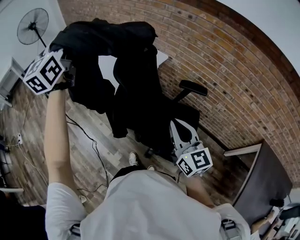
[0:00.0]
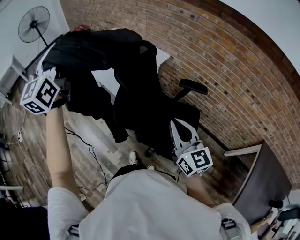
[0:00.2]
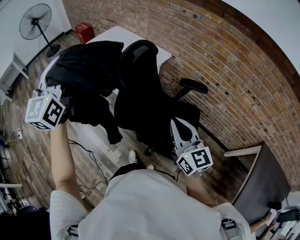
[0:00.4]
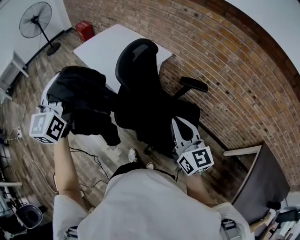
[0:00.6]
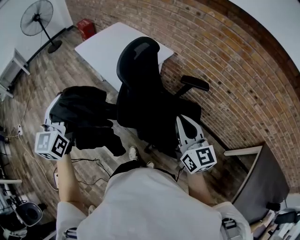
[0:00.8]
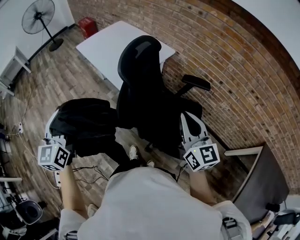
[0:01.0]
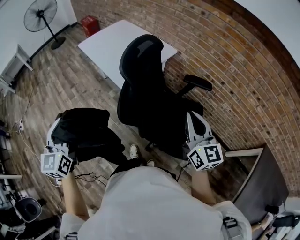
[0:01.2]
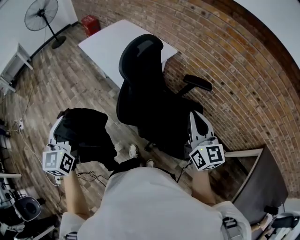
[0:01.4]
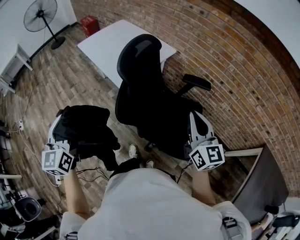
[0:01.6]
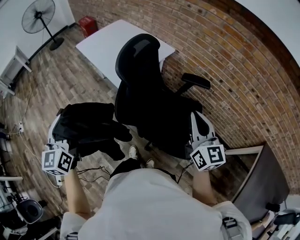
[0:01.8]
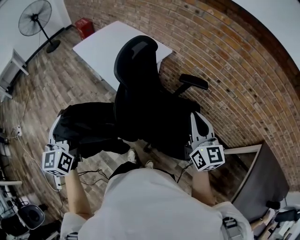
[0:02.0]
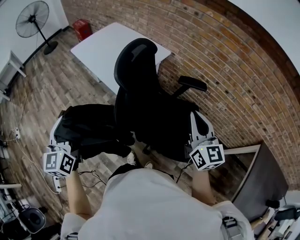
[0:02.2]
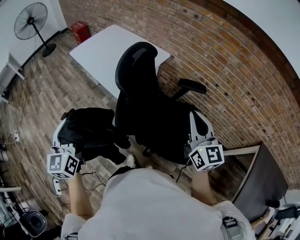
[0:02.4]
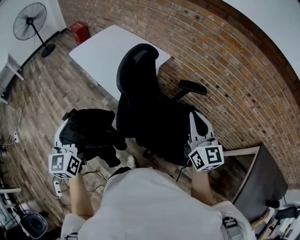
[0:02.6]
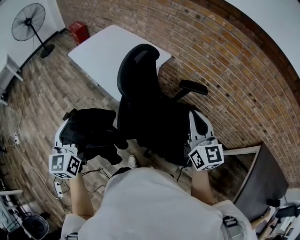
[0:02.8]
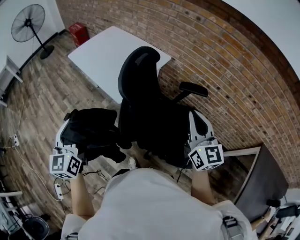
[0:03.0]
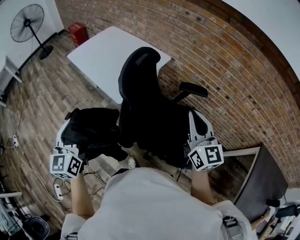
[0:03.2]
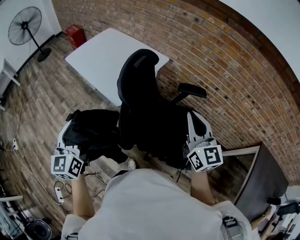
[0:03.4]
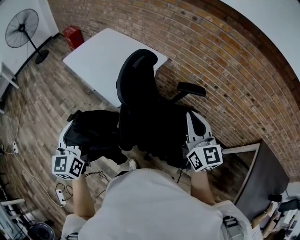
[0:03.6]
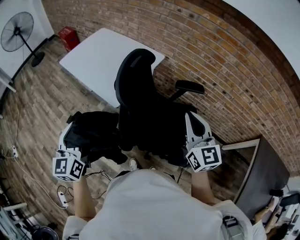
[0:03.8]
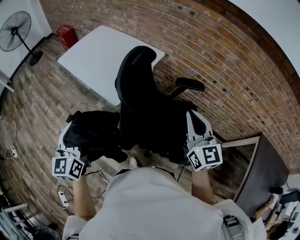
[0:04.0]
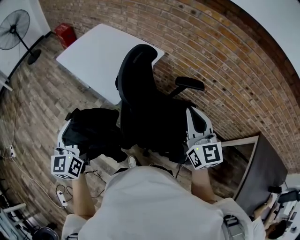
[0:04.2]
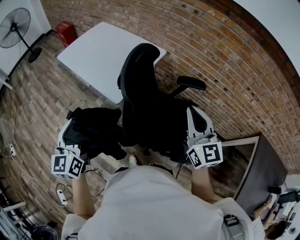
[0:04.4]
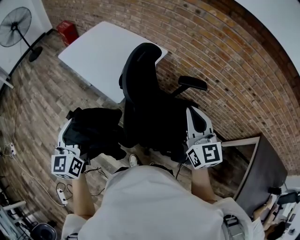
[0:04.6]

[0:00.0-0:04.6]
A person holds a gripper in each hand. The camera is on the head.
0:00.0 to 0:01.6: The left gripper shifts about 30 cm backward and downward, and changes its angle by about 20 degrees, while the right gripper moves to the right, about 5 cm.
0:01.6 to 0:03.0: The two grippers go some 10 cm forward.
0:03.0 to 0:04.6: The left gripper moves roughly 5 cm.

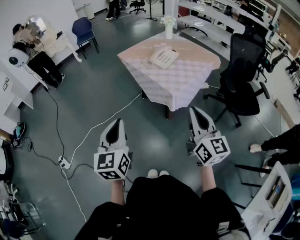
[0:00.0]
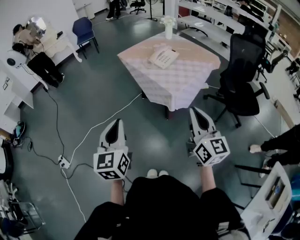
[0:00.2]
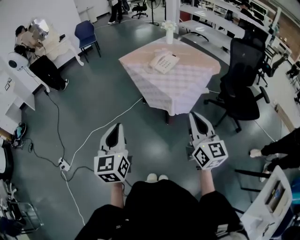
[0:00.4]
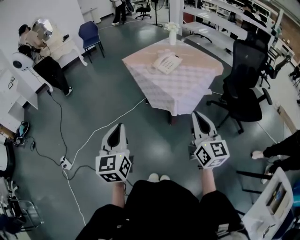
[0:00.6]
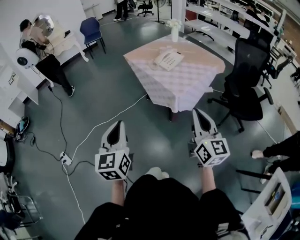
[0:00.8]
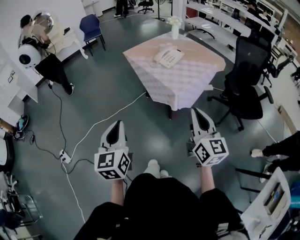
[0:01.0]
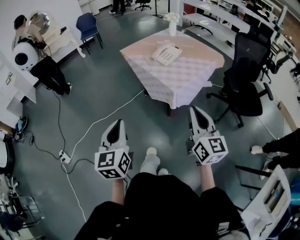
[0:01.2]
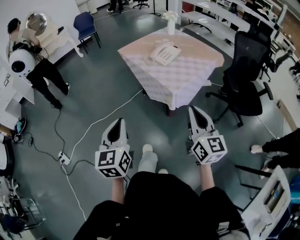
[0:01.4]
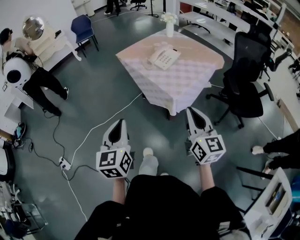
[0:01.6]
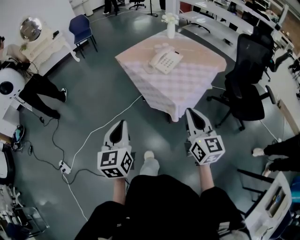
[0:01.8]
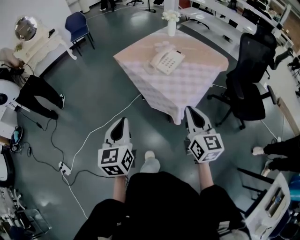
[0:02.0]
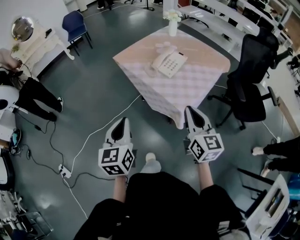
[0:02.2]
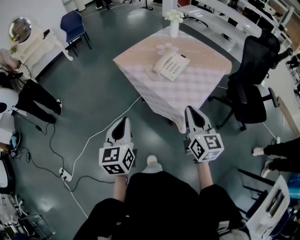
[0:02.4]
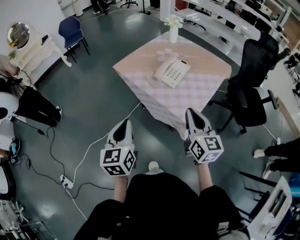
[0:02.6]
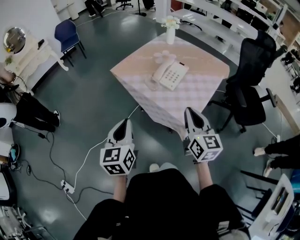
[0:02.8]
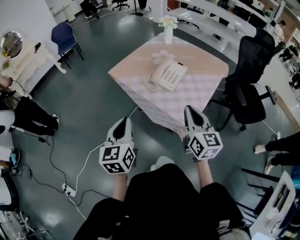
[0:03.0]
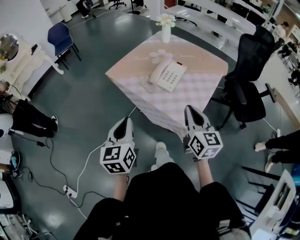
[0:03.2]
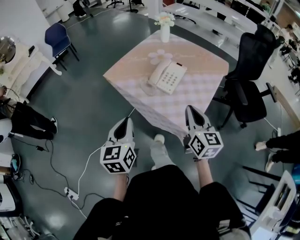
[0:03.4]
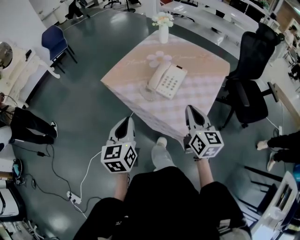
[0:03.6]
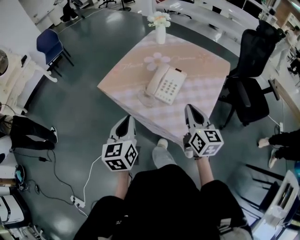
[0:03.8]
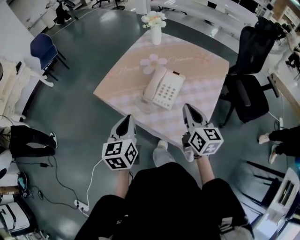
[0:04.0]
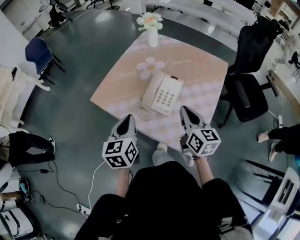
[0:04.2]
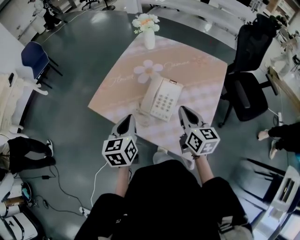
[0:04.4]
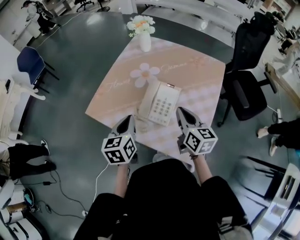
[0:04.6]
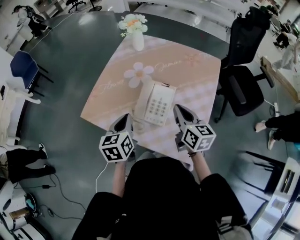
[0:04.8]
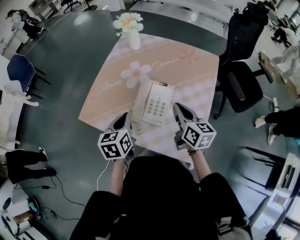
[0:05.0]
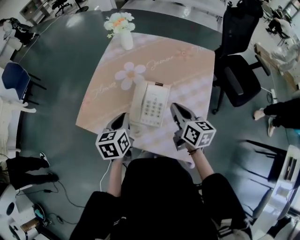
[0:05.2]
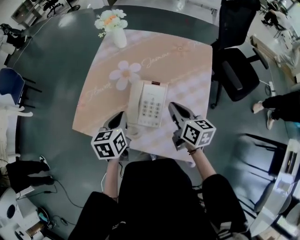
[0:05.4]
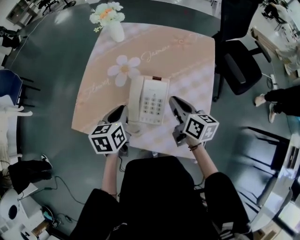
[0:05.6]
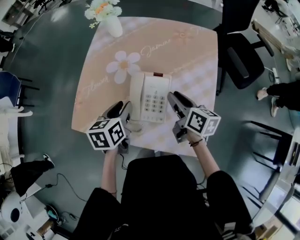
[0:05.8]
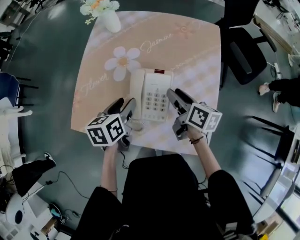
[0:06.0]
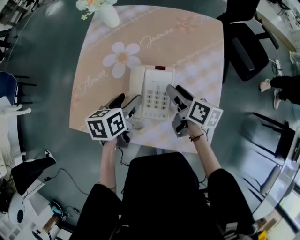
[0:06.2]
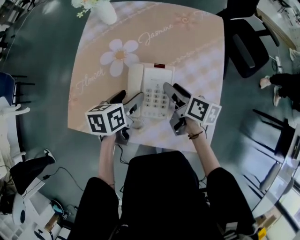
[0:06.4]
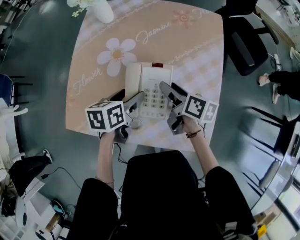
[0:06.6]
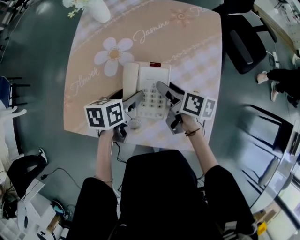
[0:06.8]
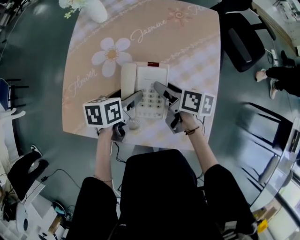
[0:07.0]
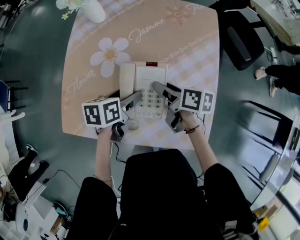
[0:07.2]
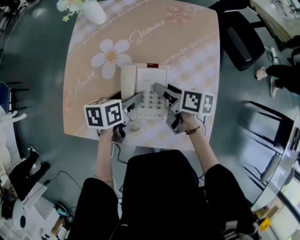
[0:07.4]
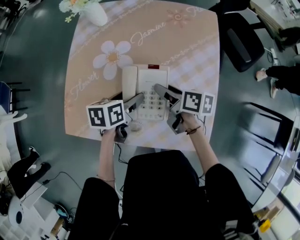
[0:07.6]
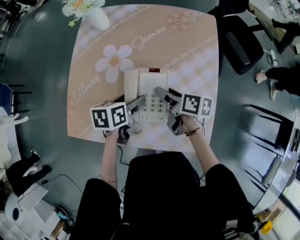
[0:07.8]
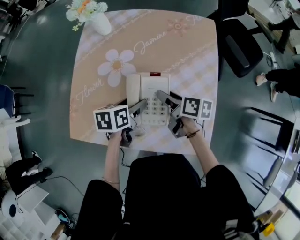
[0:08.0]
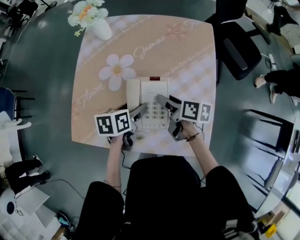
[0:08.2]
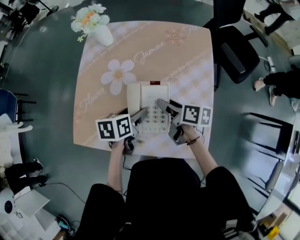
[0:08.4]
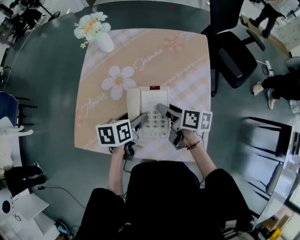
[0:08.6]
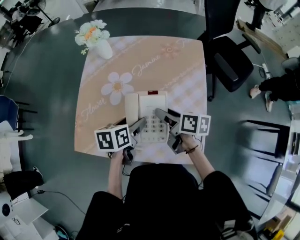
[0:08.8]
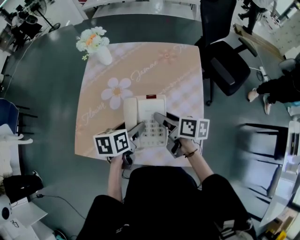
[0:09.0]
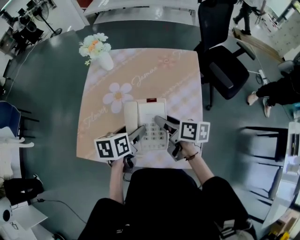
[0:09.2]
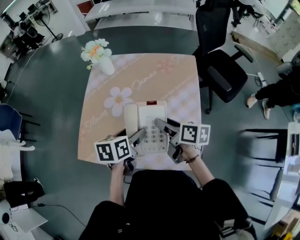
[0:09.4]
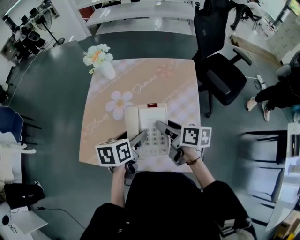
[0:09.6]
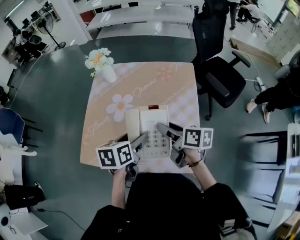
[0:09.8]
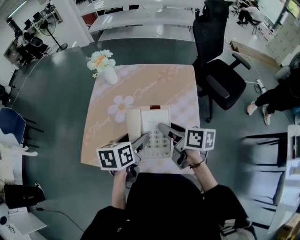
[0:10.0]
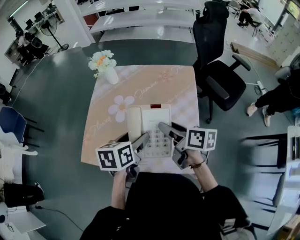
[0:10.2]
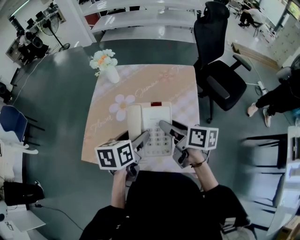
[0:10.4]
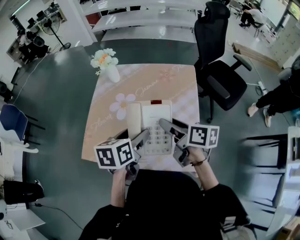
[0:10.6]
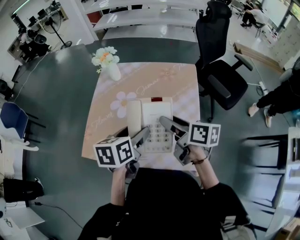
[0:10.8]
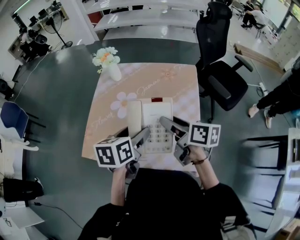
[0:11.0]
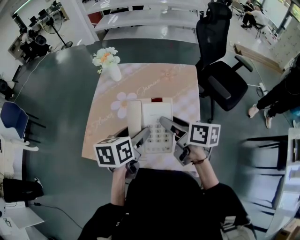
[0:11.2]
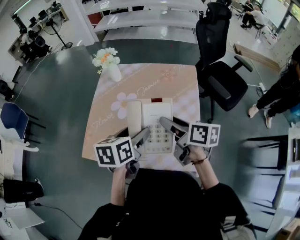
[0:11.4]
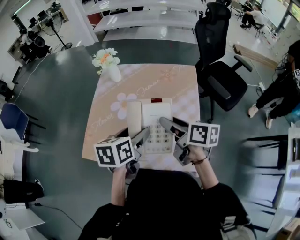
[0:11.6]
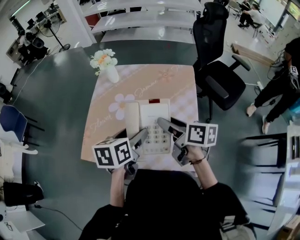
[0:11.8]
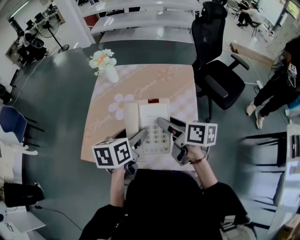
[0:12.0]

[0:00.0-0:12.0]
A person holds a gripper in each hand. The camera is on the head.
0:00.0 to 0:01.6: The two grippers go some 5 cm forward.
0:01.6 to 0:03.0: The two grippers go about 25 cm forward.
0:03.0 to 0:04.4: The grippers both shift forward by some 25 cm.
0:04.4 to 0:06.0: The left gripper goes some 20 cm forward and downward, changes its angle by about 30 degrees, and opens its fingers; the right gripper is displaced downward and forward by about 15 cm, swivels about 30 degrees, and opens its fingers.
0:06.0 to 0:07.6: The left gripper is displaced downward by some 5 cm, and opens up, while the right gripper moves roughly 5 cm.
0:07.6 to 0:09.0: Both grippers move upward, roughly 10 cm.
0:09.0 to 0:10.4: Both grippers travel together upward, about 10 cm.
0:10.4 to 0:12.0: The grippers make only small movements.

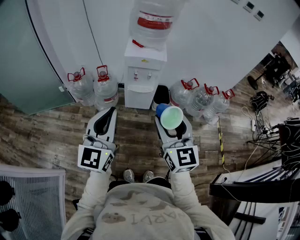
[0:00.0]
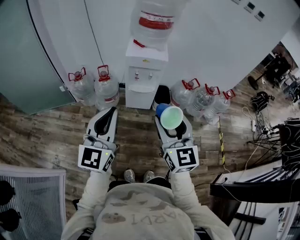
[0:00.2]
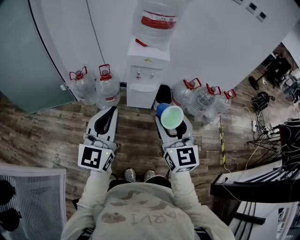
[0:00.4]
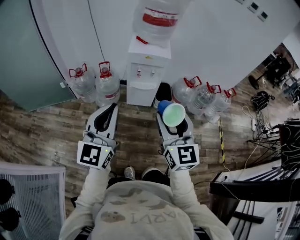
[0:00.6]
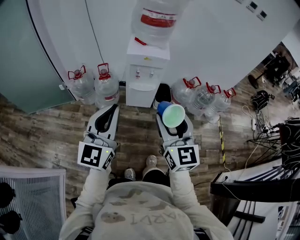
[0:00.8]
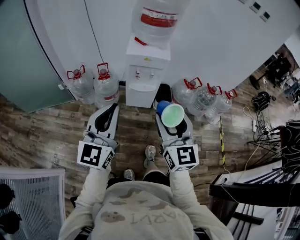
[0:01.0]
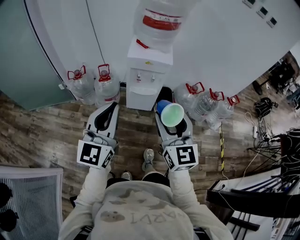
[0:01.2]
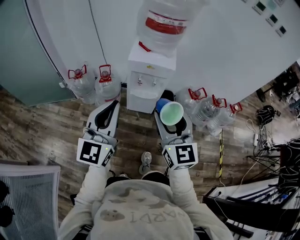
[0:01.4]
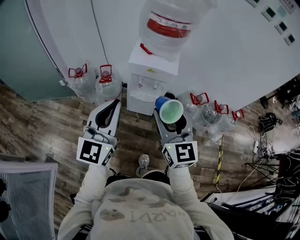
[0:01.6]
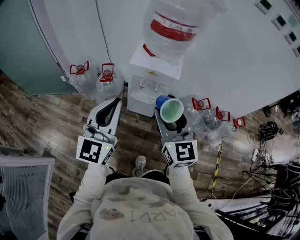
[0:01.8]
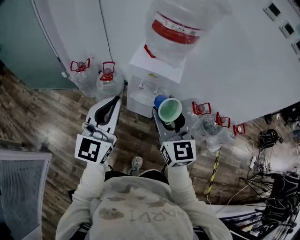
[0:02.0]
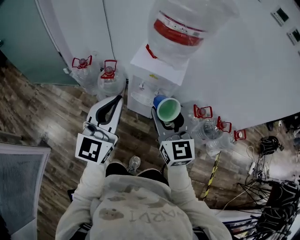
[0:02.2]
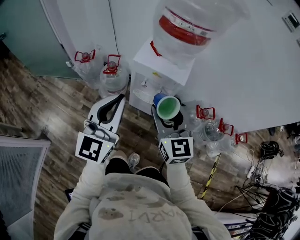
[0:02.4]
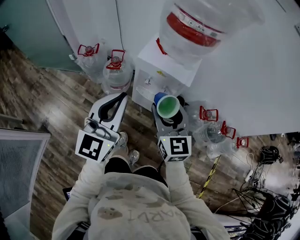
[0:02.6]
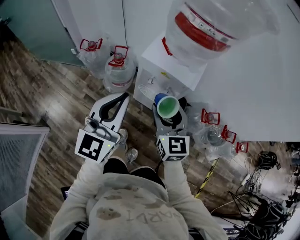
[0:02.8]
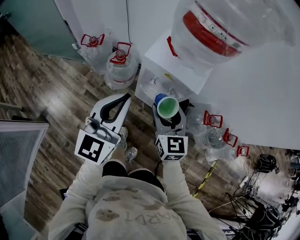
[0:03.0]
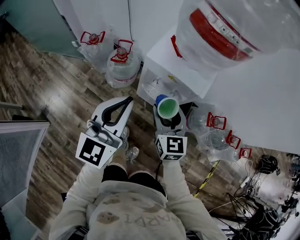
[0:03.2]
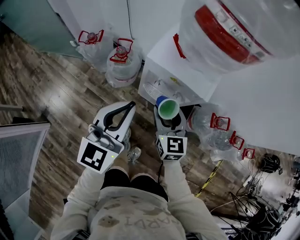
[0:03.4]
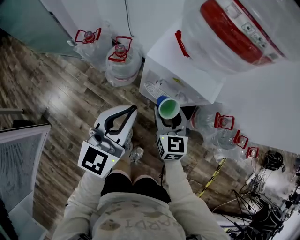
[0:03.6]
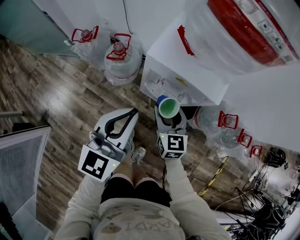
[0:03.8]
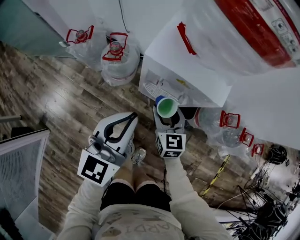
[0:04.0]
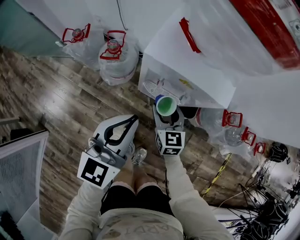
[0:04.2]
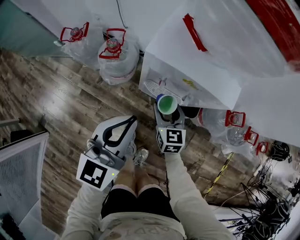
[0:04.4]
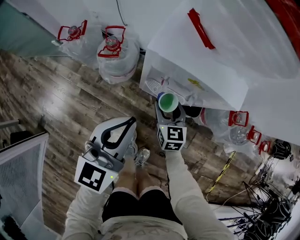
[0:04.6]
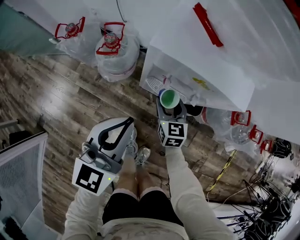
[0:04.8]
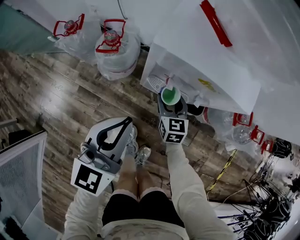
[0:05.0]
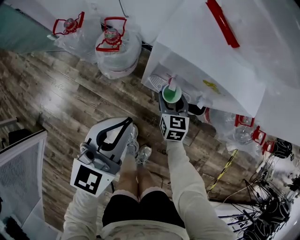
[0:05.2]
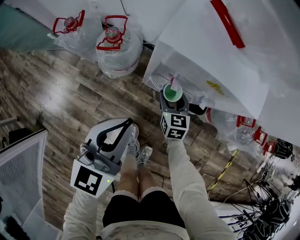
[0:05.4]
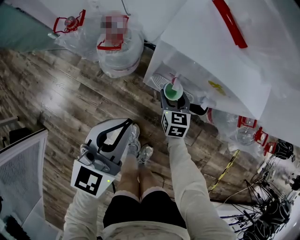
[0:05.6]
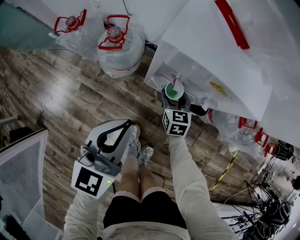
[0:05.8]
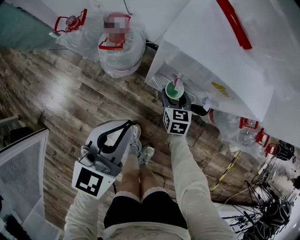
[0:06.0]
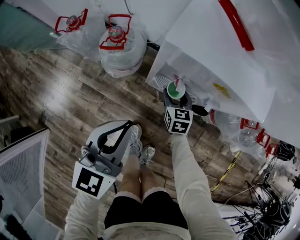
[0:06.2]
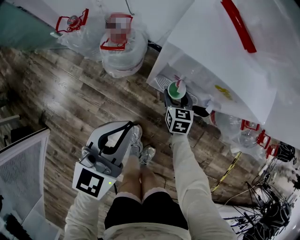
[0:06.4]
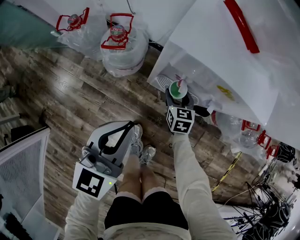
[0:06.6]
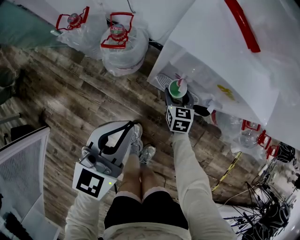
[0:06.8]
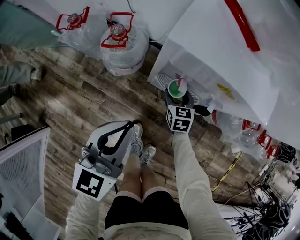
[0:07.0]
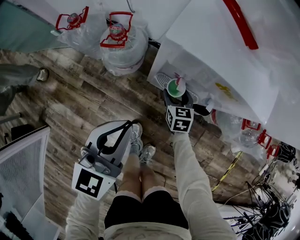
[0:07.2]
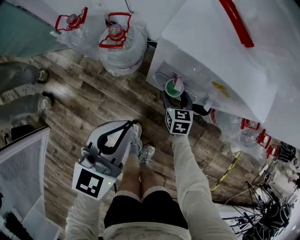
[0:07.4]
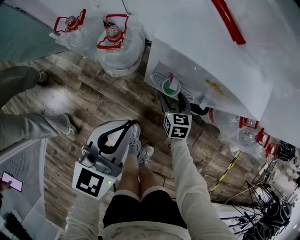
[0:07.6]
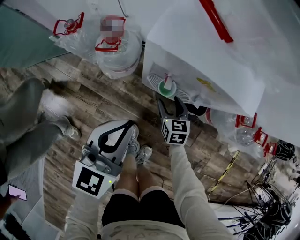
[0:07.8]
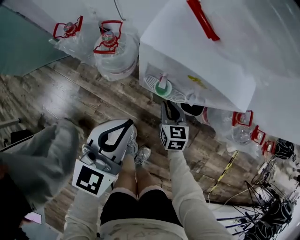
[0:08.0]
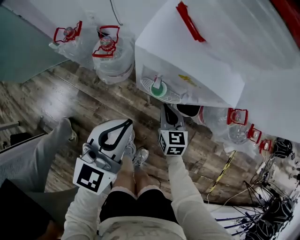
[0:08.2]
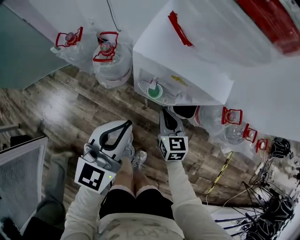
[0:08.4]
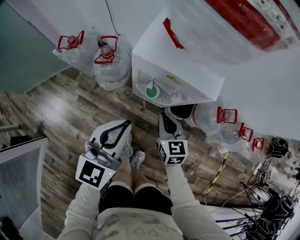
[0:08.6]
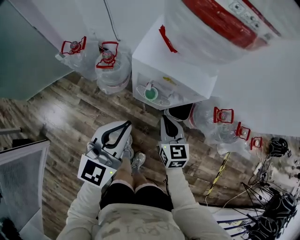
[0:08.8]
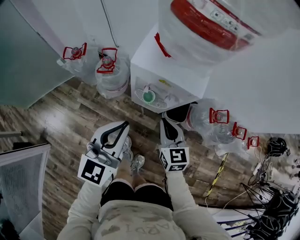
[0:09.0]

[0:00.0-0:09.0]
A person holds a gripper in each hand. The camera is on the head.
0:00.0 to 0:01.6: The two grippers go about 20 cm forward.
0:01.6 to 0:03.0: The left gripper travels forward and downward by approximately 15 cm. The right gripper shifts roughly 25 cm forward and downward.
0:03.0 to 0:04.4: The grippers both shift downward by about 25 cm.
0:04.4 to 0:06.0: The right gripper heads downward, covering roughly 15 cm, while the left gripper goes approximately 10 cm downward.
0:06.0 to 0:07.6: The grippers stay close to where they were, moving slightly.
0:07.6 to 0:09.0: The right gripper is displaced upward by about 30 cm, and closes its fingers; the left gripper shifts some 15 cm upward.
